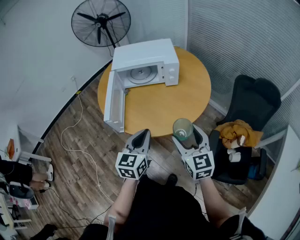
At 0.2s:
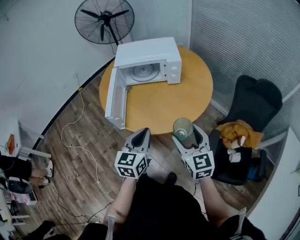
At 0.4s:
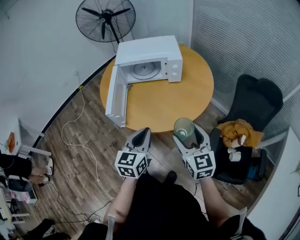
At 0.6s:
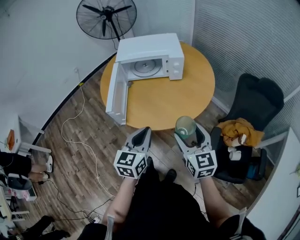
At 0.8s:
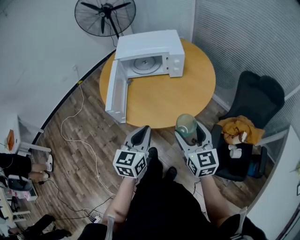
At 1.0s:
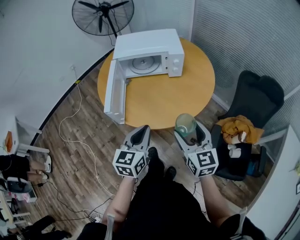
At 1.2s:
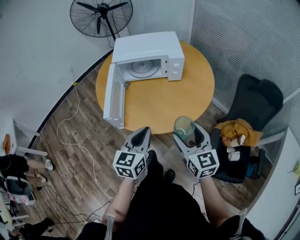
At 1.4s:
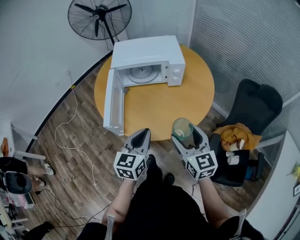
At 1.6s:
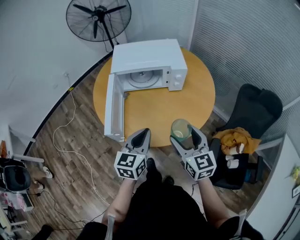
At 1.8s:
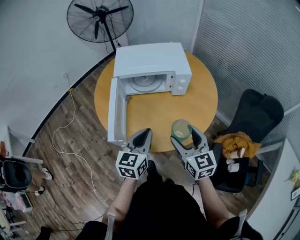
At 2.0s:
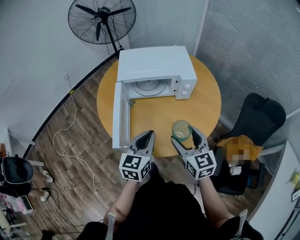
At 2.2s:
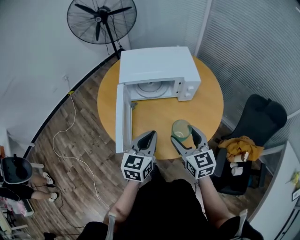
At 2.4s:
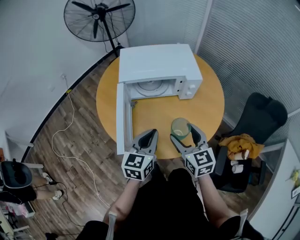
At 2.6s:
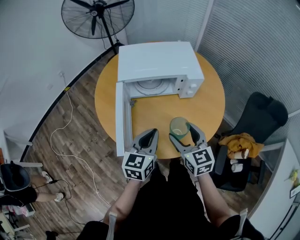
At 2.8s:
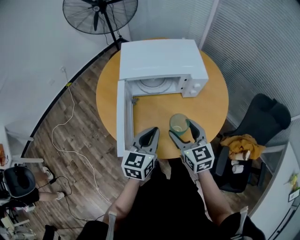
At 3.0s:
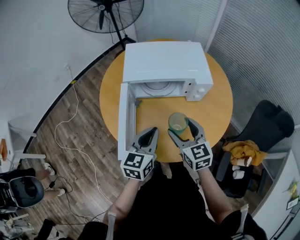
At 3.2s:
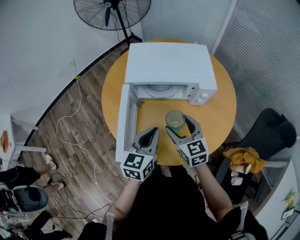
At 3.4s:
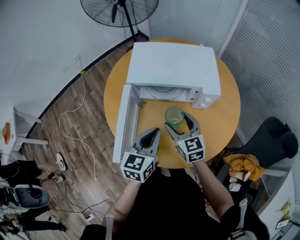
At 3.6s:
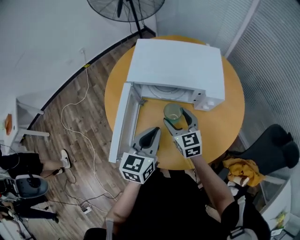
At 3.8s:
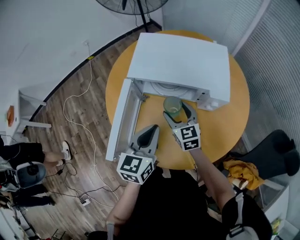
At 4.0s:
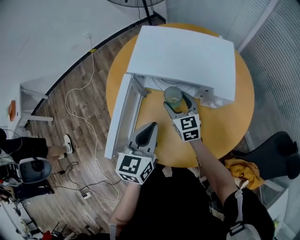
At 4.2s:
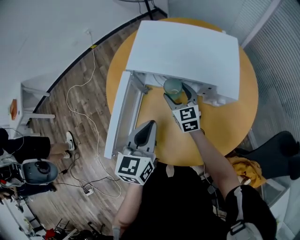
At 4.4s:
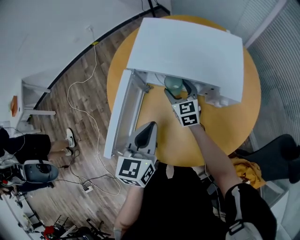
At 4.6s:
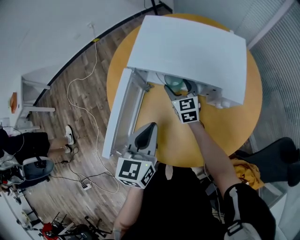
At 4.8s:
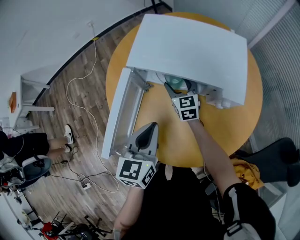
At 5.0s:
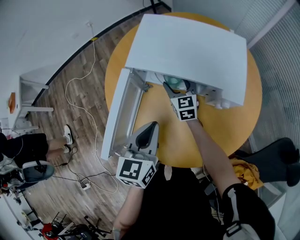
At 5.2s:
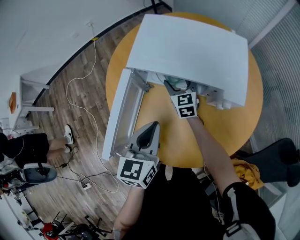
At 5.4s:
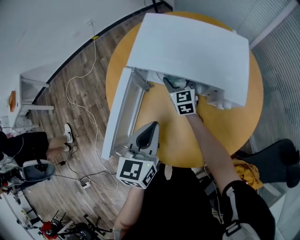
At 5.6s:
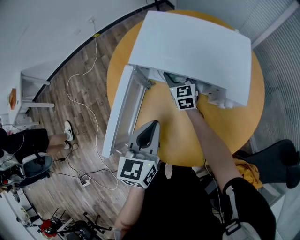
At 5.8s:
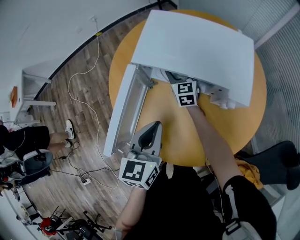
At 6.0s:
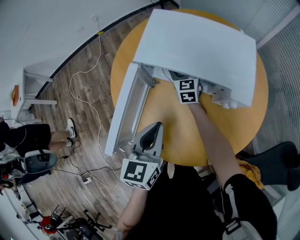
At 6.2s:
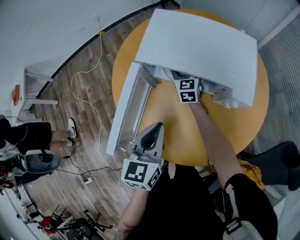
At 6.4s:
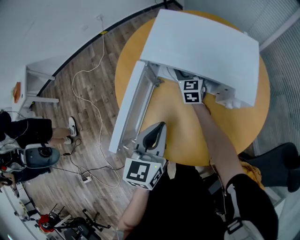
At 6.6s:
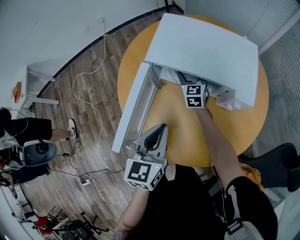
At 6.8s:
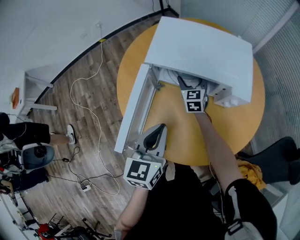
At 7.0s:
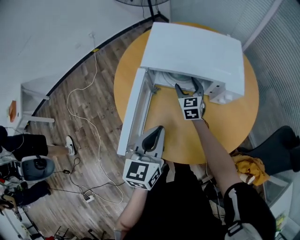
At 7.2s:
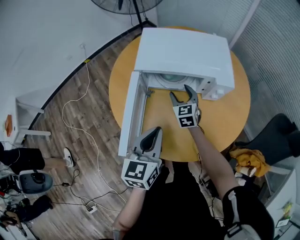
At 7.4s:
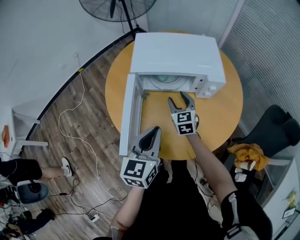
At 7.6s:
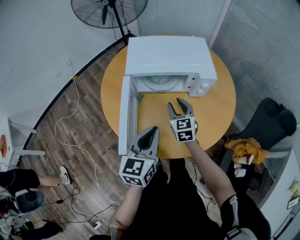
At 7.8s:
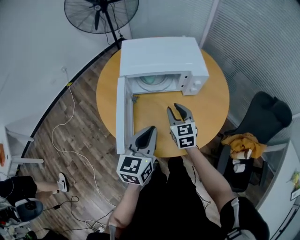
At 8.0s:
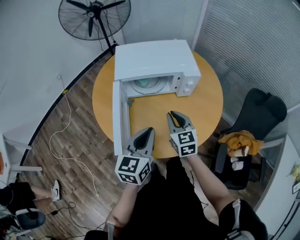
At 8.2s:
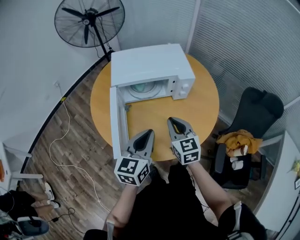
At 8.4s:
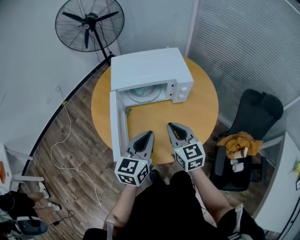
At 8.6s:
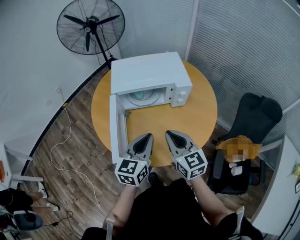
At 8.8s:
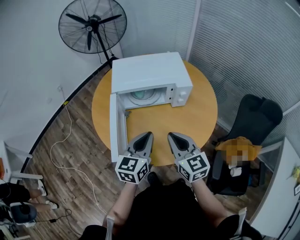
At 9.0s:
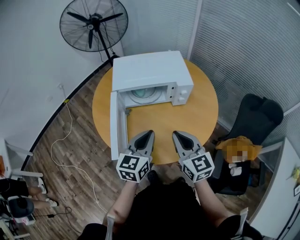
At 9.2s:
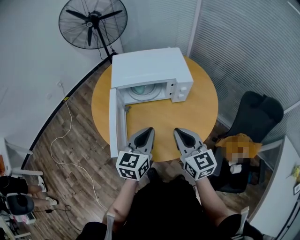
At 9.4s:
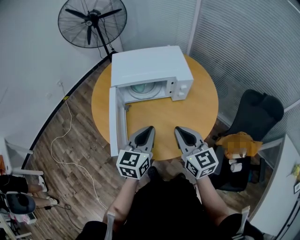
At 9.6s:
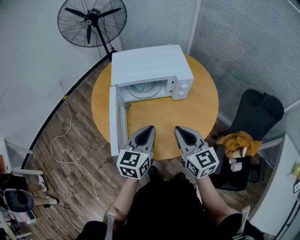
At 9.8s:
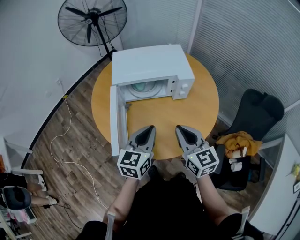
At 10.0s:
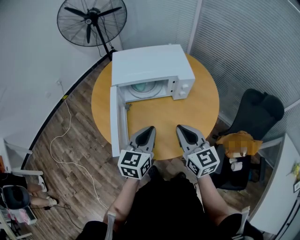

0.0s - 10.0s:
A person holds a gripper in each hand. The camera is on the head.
0.0s - 1.4s: The grippers both shift forward by about 5 cm.
1.4s - 2.8s: The grippers both shift forward and to the left by roughly 20 cm.
2.8s - 4.2s: The right gripper travels forward and downward by about 25 cm. The left gripper travels forward by some 10 cm, and changes its angle by about 30 degrees.
4.2s - 5.8s: The right gripper is displaced forward by roughly 10 cm.
5.8s - 7.2s: The right gripper travels backward by approximately 10 cm, while the left gripper travels backward by about 5 cm.
7.2s - 8.6s: The left gripper ends up some 5 cm from where it was, while the right gripper shifts roughly 30 cm backward and upward, and closes up.
8.6s - 10.0s: The grippers stay close to where they were, moving slightly.

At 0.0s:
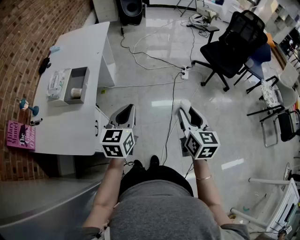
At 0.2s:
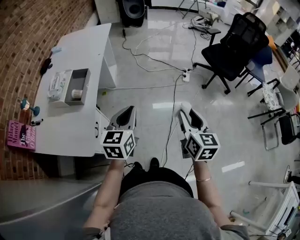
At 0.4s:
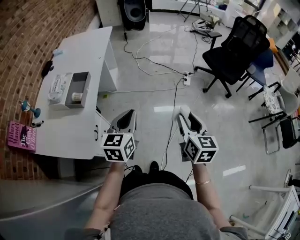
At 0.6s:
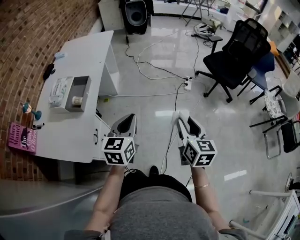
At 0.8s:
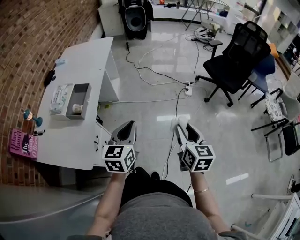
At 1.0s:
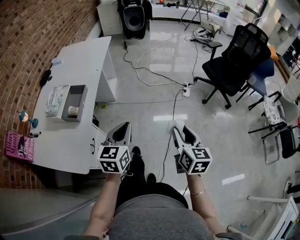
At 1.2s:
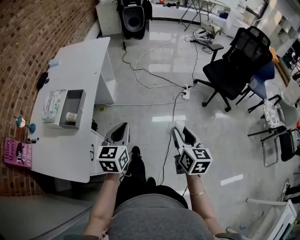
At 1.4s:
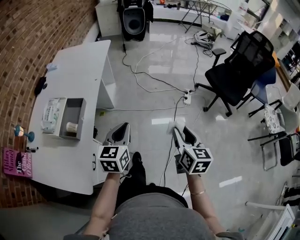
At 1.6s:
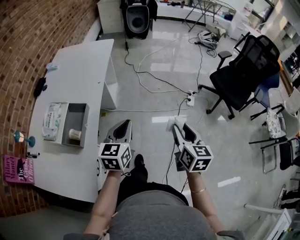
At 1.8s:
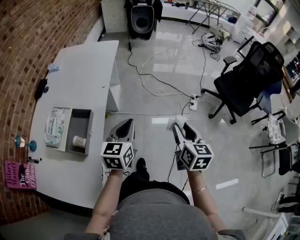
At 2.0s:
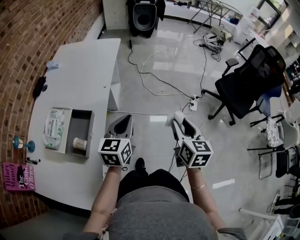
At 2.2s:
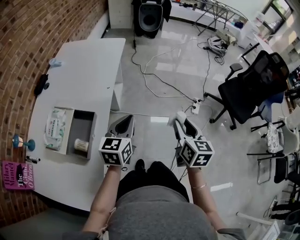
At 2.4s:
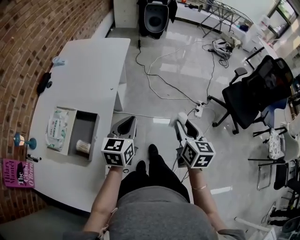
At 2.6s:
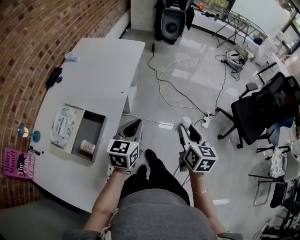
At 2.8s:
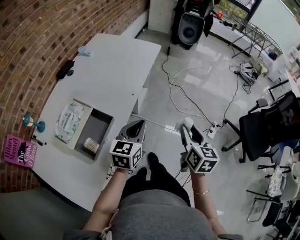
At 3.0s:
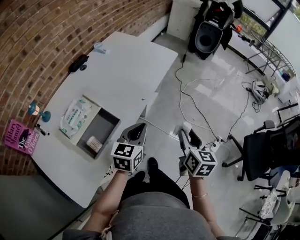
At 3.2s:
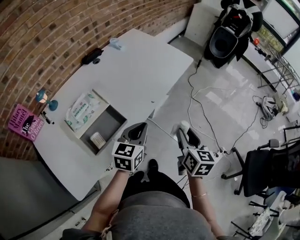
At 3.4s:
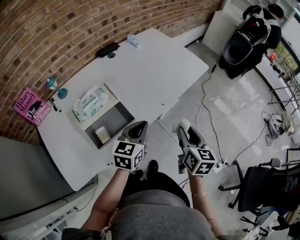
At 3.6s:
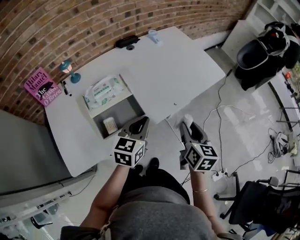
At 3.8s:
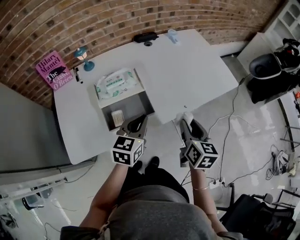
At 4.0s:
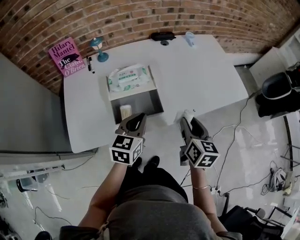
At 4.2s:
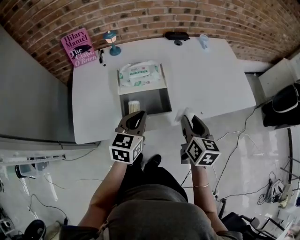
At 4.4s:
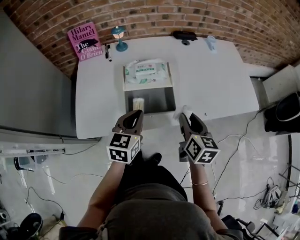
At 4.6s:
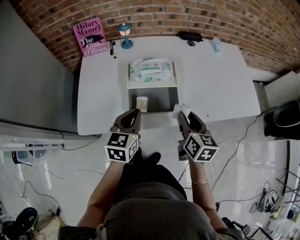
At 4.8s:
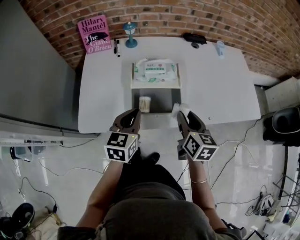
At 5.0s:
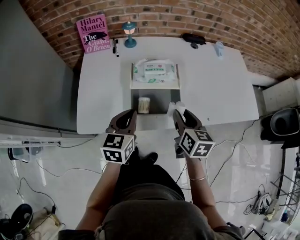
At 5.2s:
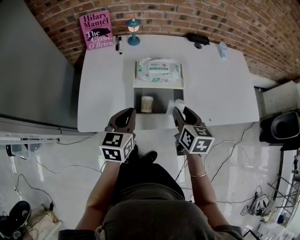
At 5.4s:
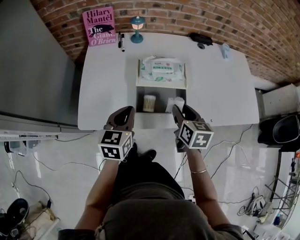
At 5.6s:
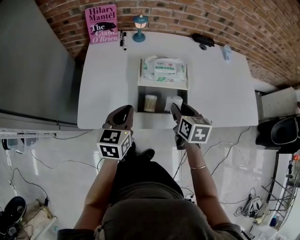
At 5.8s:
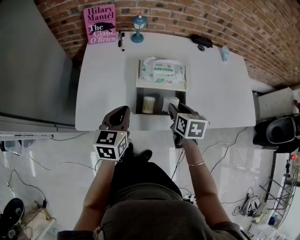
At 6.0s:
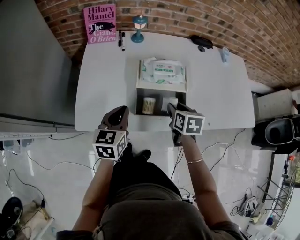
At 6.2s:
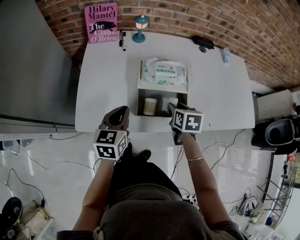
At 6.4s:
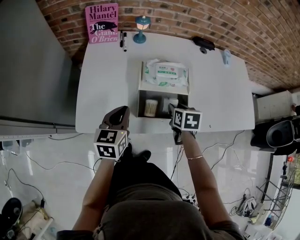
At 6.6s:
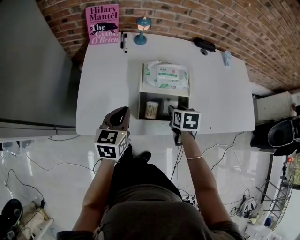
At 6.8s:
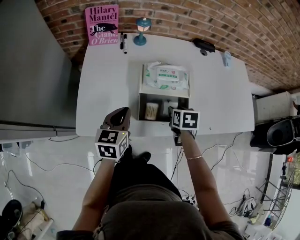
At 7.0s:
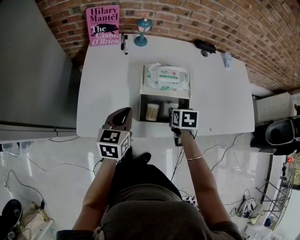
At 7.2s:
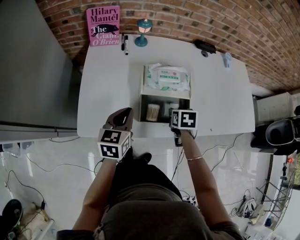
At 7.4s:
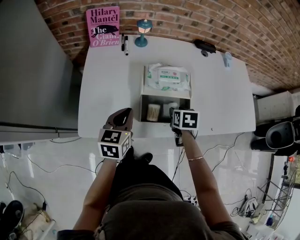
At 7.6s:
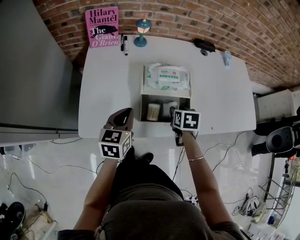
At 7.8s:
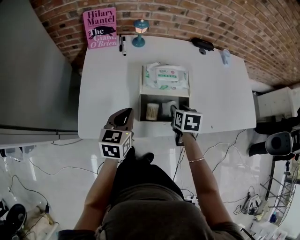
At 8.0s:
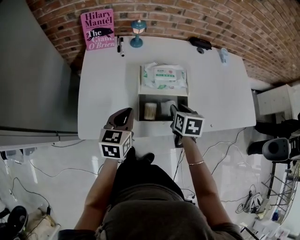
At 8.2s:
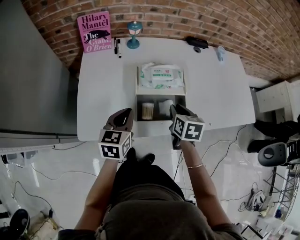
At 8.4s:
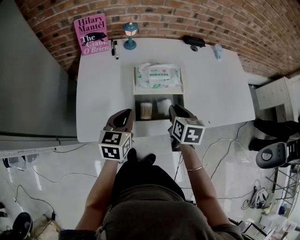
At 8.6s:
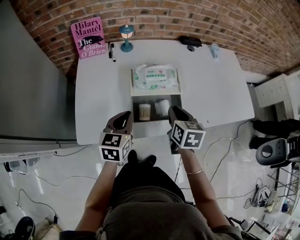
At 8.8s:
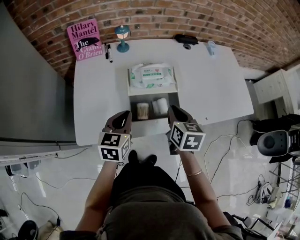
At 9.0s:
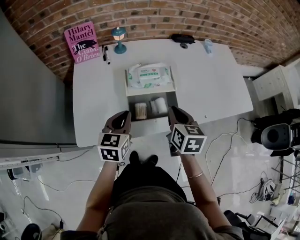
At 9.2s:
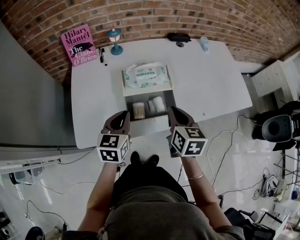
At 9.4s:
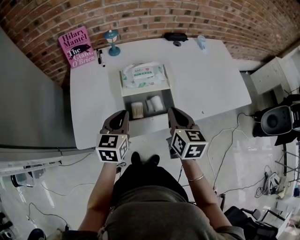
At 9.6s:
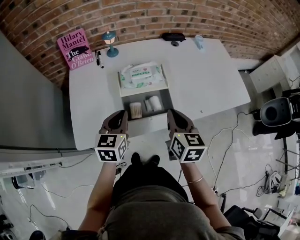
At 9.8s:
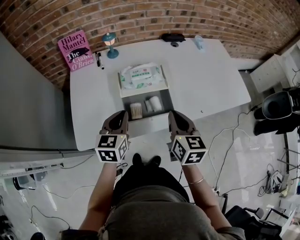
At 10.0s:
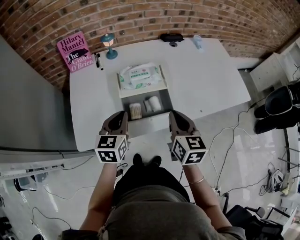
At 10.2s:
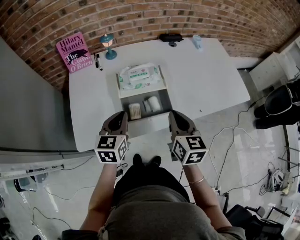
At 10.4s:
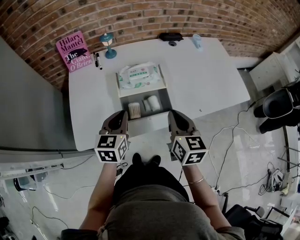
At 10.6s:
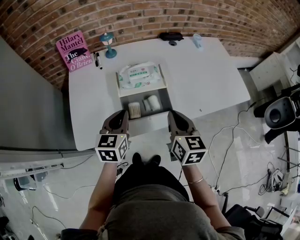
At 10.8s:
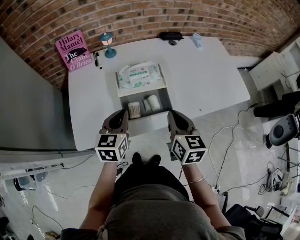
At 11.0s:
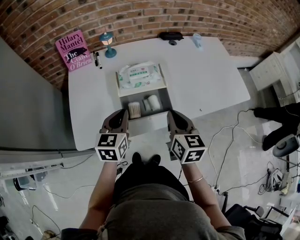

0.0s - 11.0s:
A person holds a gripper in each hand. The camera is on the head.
0.0s - 1.6s: The two grippers go roughly 20 cm forward.
1.6s - 3.2s: The left gripper moves roughly 20 cm, and turns by approximately 30 degrees. The right gripper changes place by roughly 35 cm, and rotates about 30 degrees.
3.2s - 4.8s: The right gripper changes place by roughly 25 cm, and rotates roughly 50 degrees, while the left gripper shifts by approximately 25 cm, and swivels approximately 50 degrees.
4.8s - 6.2s: The right gripper heads downward, forward and to the left, covering about 15 cm, and turns by about 30 degrees; the left gripper shifts approximately 10 cm to the left.
6.2s - 7.8s: The grippers move only a little.
7.8s - 9.4s: The left gripper ends up approximately 5 cm from where it was; the right gripper is displaced upward and backward by approximately 15 cm, changes its angle by some 30 degrees, and closes up.
9.4s - 11.0s: There are only small adjustments of the grippers.

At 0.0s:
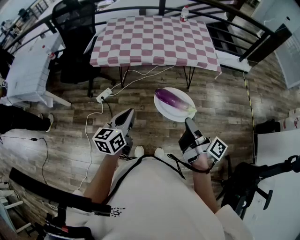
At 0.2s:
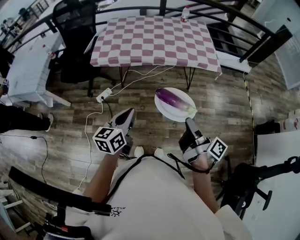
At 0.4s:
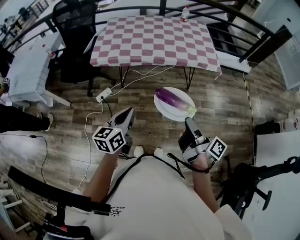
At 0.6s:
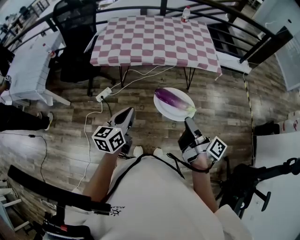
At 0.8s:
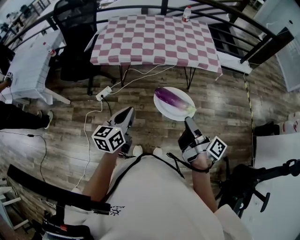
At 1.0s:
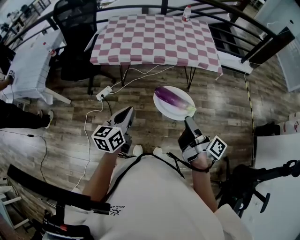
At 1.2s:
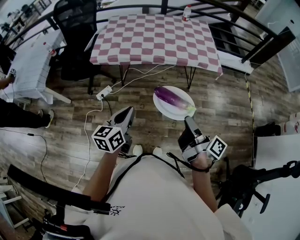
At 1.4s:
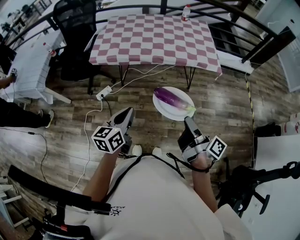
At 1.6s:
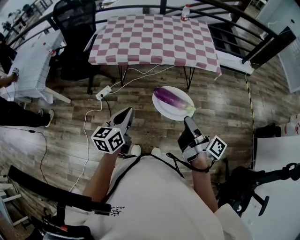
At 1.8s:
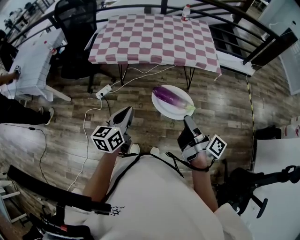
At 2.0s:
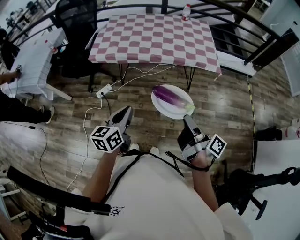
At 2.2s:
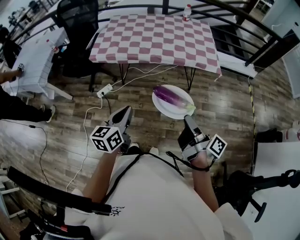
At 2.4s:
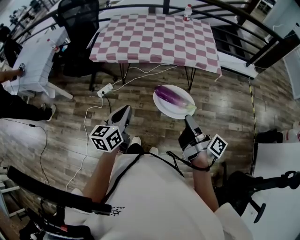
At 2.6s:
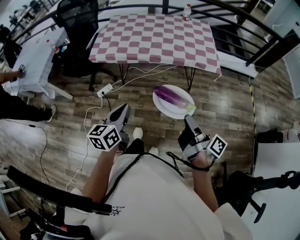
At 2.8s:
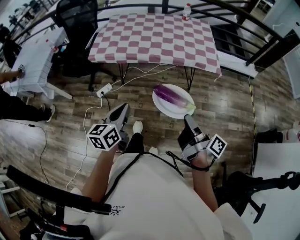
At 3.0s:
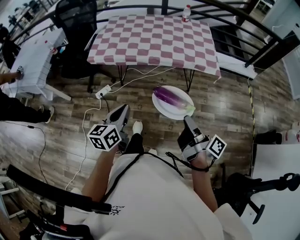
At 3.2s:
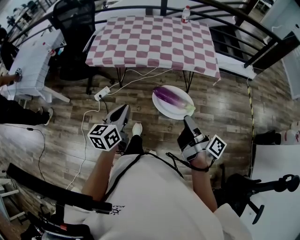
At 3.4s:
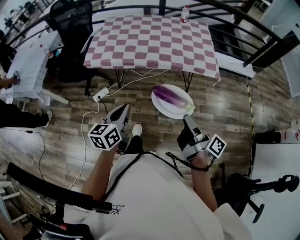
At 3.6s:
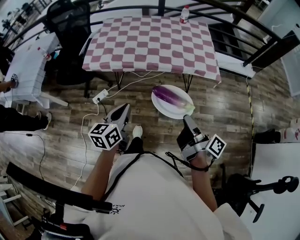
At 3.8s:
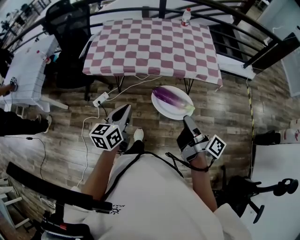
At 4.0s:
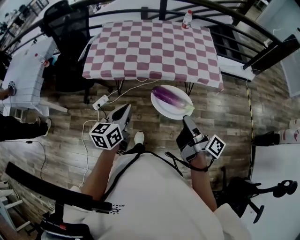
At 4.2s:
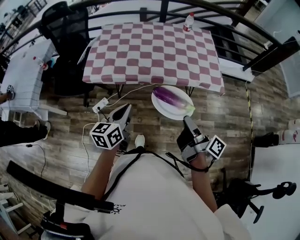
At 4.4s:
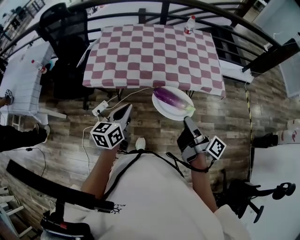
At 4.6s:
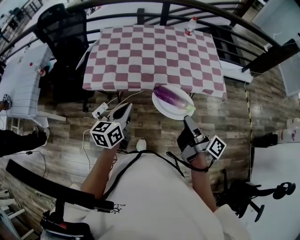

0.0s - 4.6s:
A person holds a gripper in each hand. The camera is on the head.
3.0s - 4.6s: The left gripper ends up approximately 30 cm from where it was.
